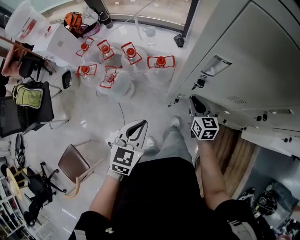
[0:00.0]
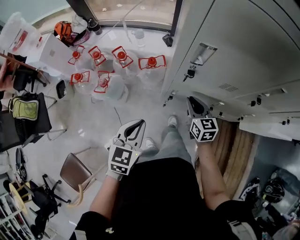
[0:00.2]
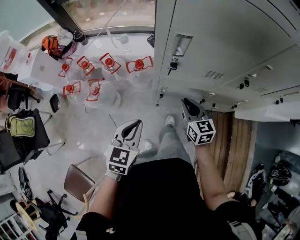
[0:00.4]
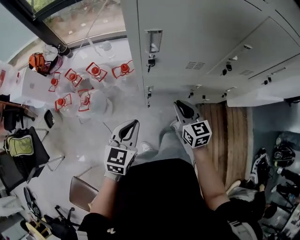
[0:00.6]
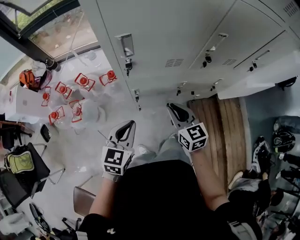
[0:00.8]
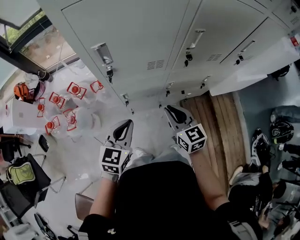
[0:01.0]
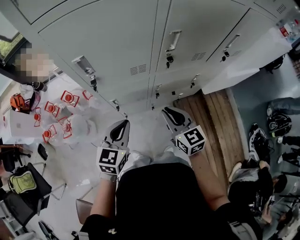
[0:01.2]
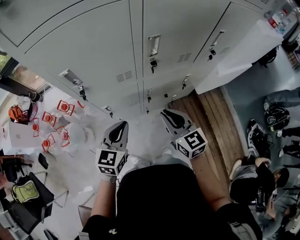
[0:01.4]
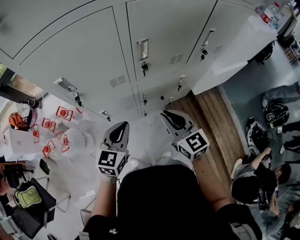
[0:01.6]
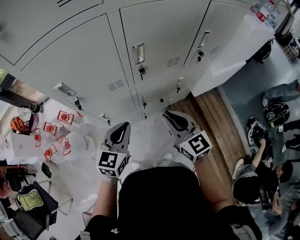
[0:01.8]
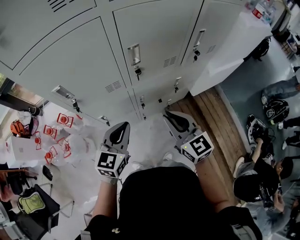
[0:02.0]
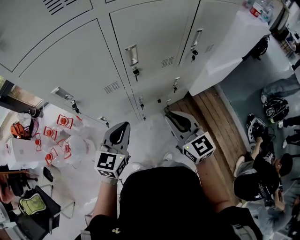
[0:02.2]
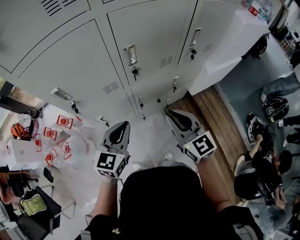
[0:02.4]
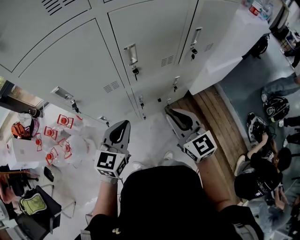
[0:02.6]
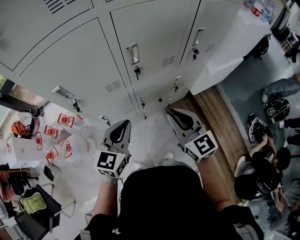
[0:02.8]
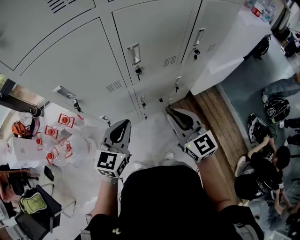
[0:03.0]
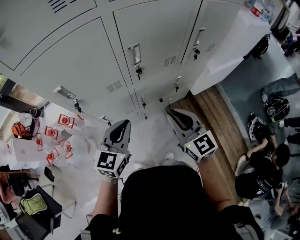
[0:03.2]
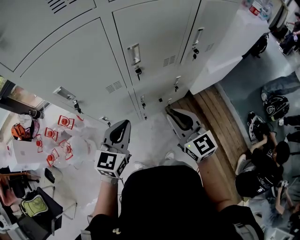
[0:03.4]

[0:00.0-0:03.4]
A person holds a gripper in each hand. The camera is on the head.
0:00.0 to 0:01.6: The left gripper ends up some 30 cm from where it was, and swivels roughly 30 degrees. Meanwhile the right gripper shifts by some 35 cm, and swivels about 20 degrees.
0:01.6 to 0:03.4: The right gripper moves some 5 cm. The left gripper moves some 5 cm.

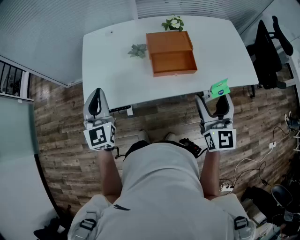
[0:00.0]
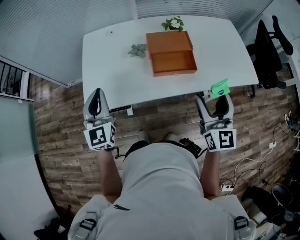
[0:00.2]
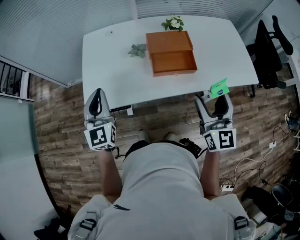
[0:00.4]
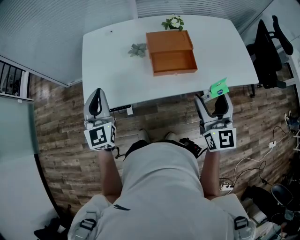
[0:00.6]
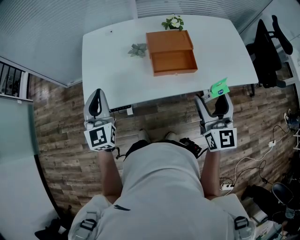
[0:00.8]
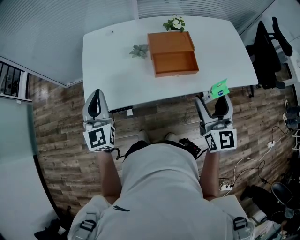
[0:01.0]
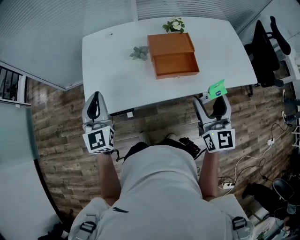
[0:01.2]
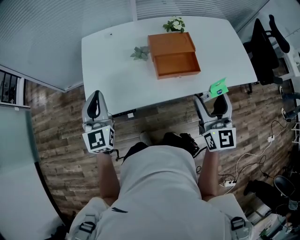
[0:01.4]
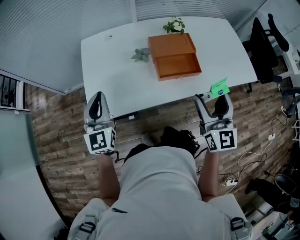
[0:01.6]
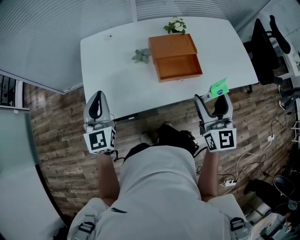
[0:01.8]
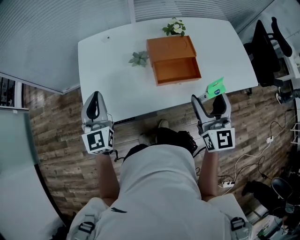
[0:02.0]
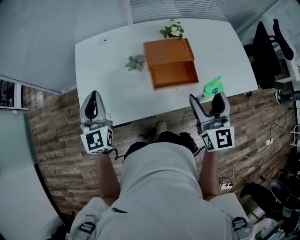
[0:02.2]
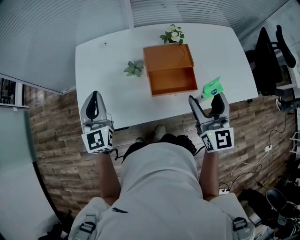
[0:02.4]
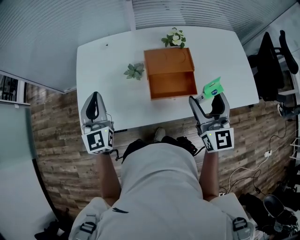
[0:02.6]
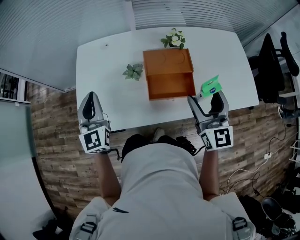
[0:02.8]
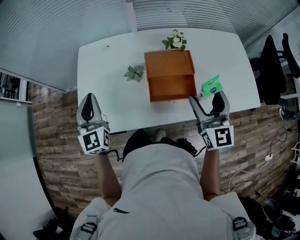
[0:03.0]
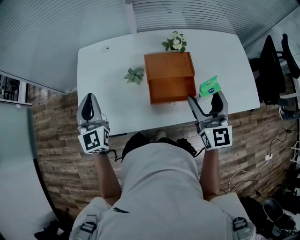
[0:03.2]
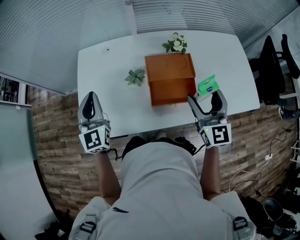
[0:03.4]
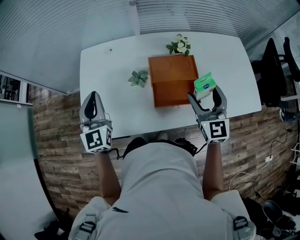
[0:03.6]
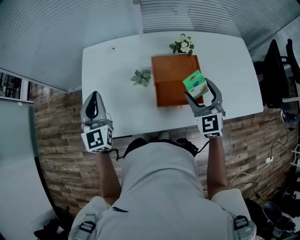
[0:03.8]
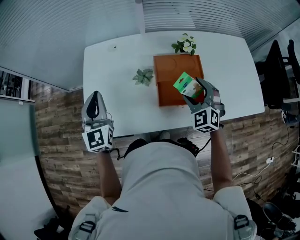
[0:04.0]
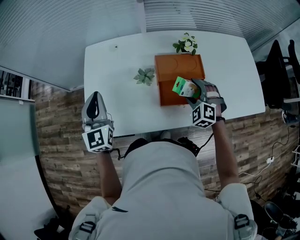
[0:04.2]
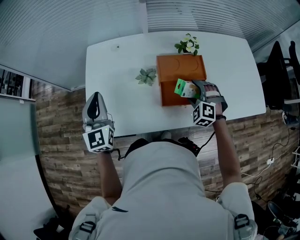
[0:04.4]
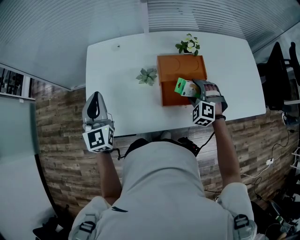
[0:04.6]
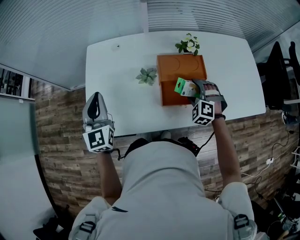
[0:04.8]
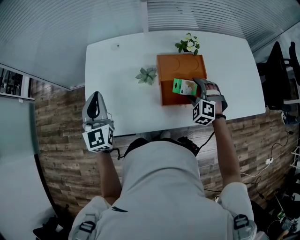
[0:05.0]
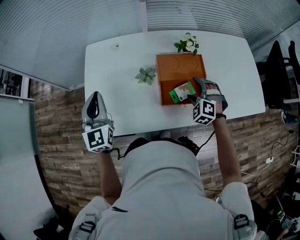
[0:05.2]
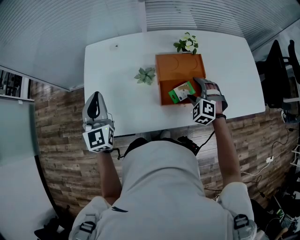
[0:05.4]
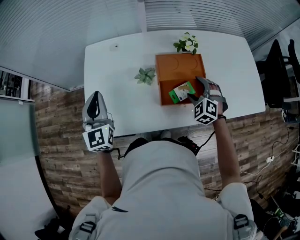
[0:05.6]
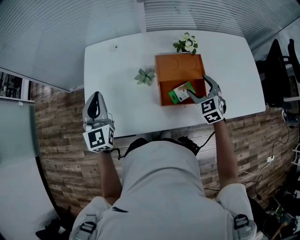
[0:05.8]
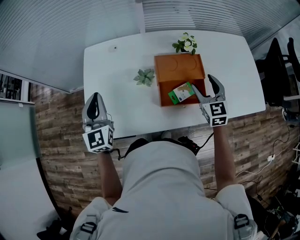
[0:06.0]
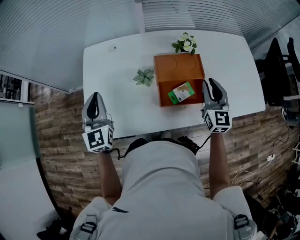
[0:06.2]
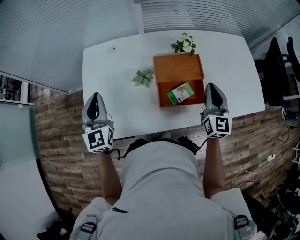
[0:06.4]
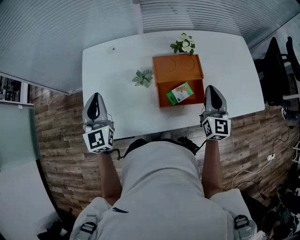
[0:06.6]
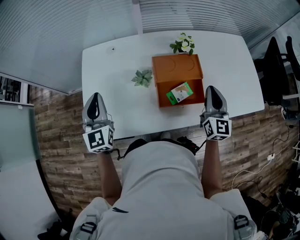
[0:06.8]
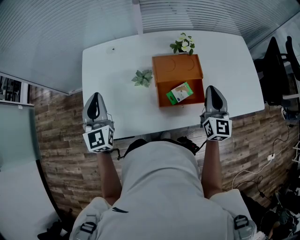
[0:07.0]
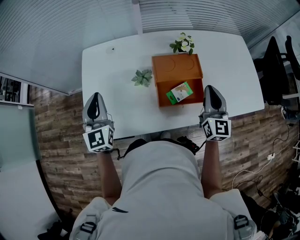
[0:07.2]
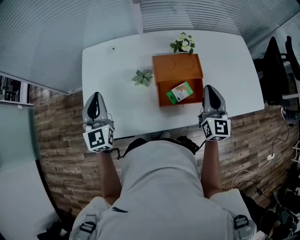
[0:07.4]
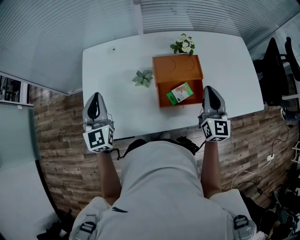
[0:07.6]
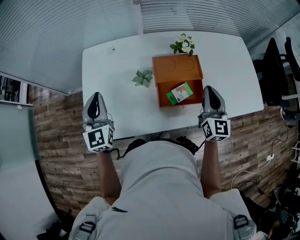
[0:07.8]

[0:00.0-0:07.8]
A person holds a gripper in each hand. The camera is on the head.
0:00.0 to 0:01.6: The left gripper moves approximately 5 cm, while the right gripper changes place by about 5 cm.
0:01.6 to 0:03.2: The right gripper is displaced forward and to the right by some 15 cm. The left gripper shifts roughly 10 cm forward.
0:03.2 to 0:04.6: The right gripper goes roughly 20 cm downward, and points its fingers roughly 40 degrees further downward.
0:04.6 to 0:06.2: The right gripper goes roughly 15 cm upward and to the right, rolls clockwise, seen from behind, by roughly 60 degrees, and closes its fingers.
0:06.2 to 0:07.8: The grippers move only a little.

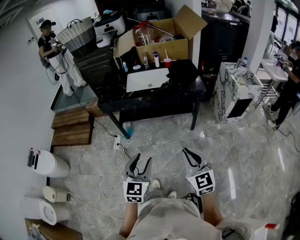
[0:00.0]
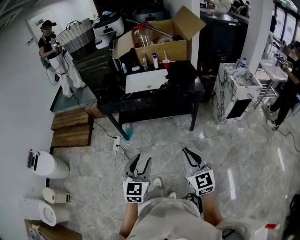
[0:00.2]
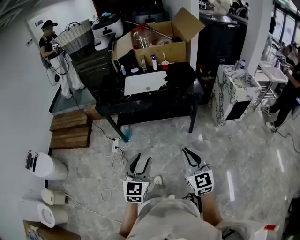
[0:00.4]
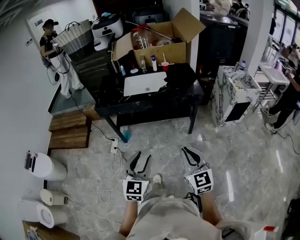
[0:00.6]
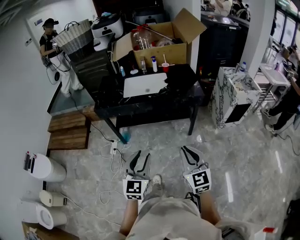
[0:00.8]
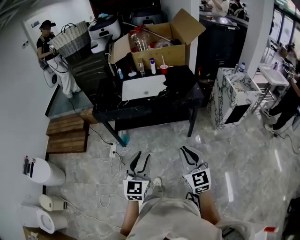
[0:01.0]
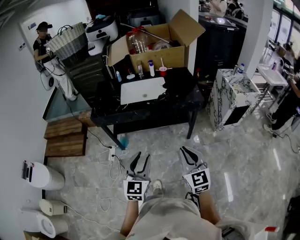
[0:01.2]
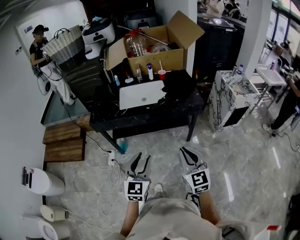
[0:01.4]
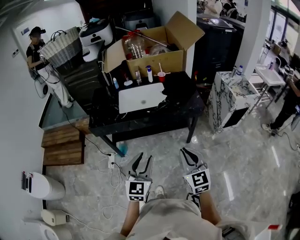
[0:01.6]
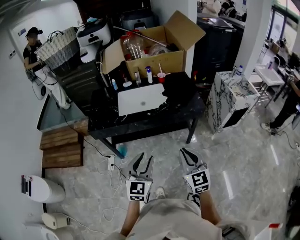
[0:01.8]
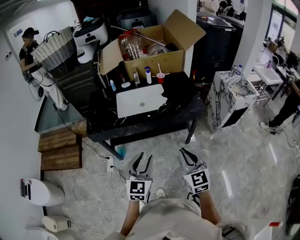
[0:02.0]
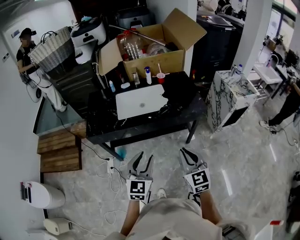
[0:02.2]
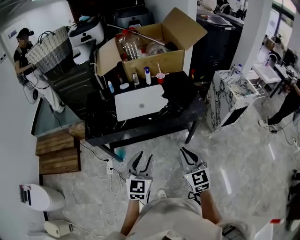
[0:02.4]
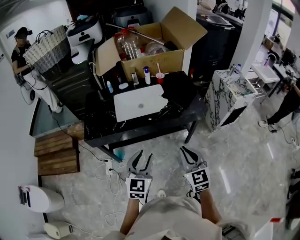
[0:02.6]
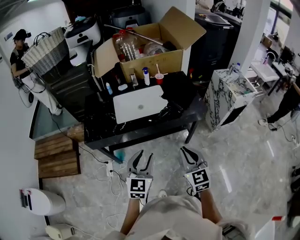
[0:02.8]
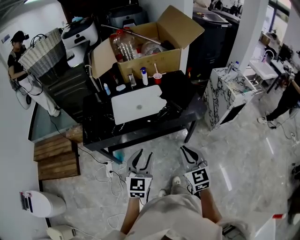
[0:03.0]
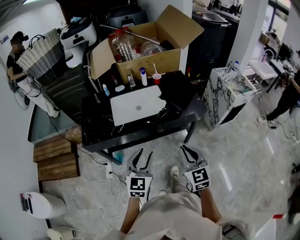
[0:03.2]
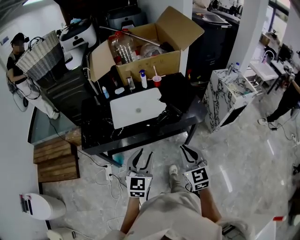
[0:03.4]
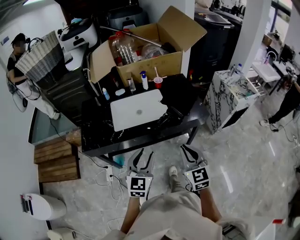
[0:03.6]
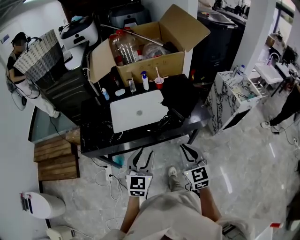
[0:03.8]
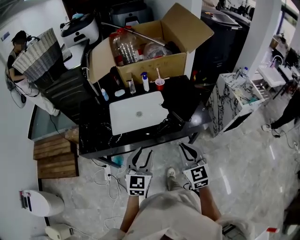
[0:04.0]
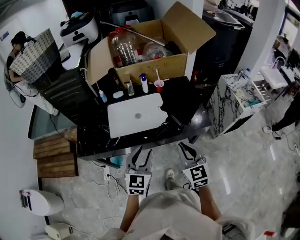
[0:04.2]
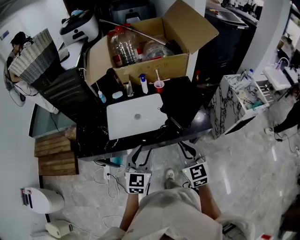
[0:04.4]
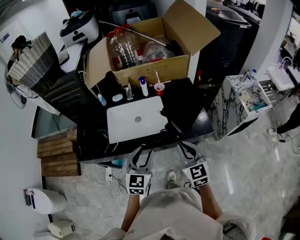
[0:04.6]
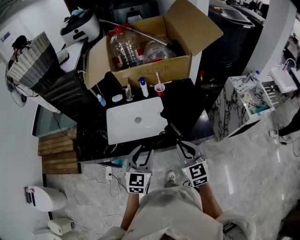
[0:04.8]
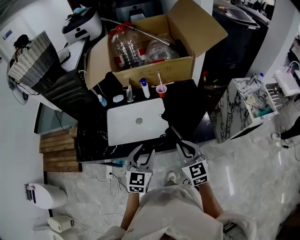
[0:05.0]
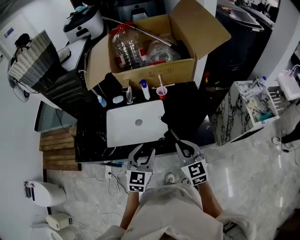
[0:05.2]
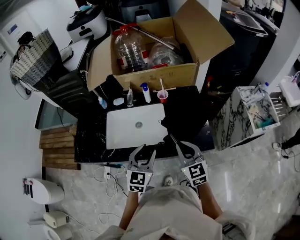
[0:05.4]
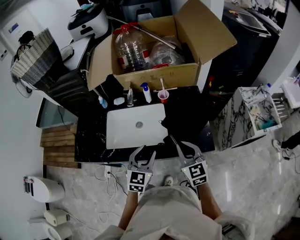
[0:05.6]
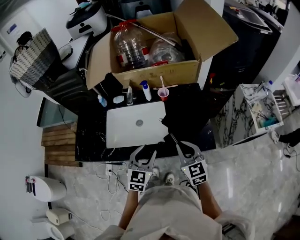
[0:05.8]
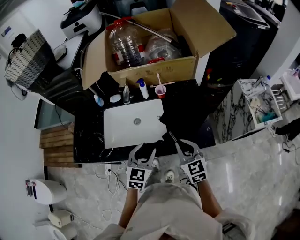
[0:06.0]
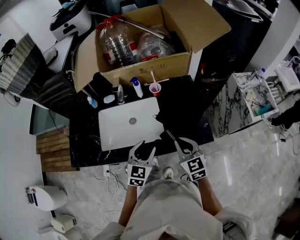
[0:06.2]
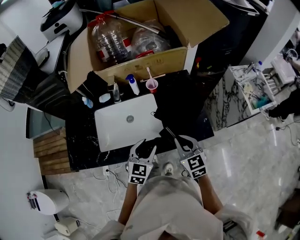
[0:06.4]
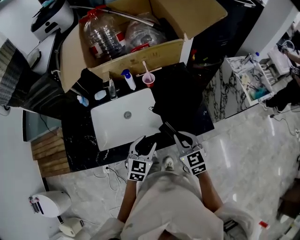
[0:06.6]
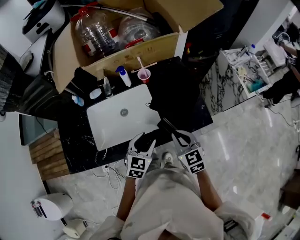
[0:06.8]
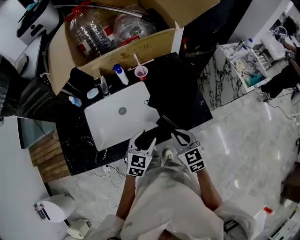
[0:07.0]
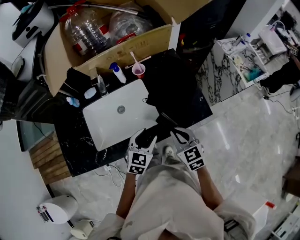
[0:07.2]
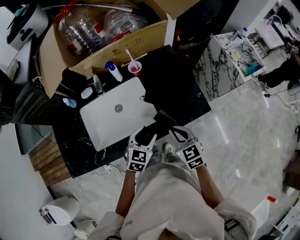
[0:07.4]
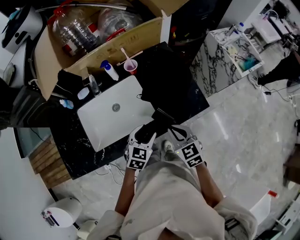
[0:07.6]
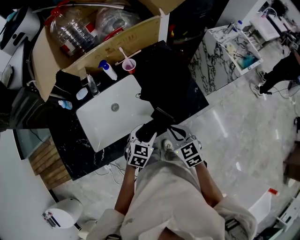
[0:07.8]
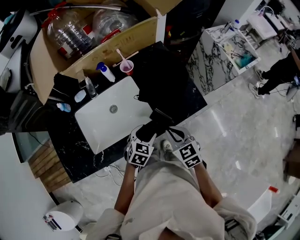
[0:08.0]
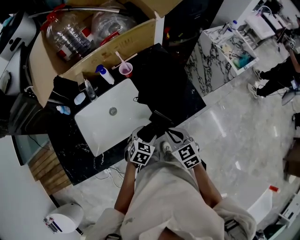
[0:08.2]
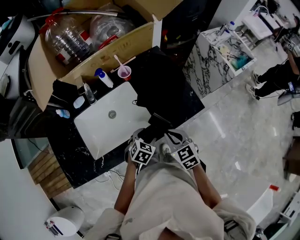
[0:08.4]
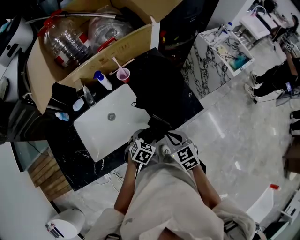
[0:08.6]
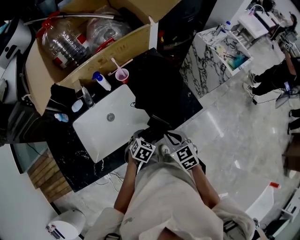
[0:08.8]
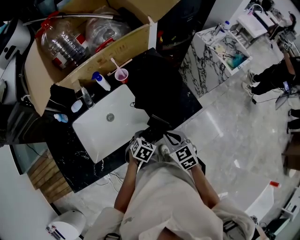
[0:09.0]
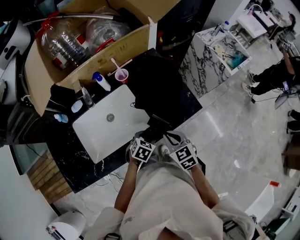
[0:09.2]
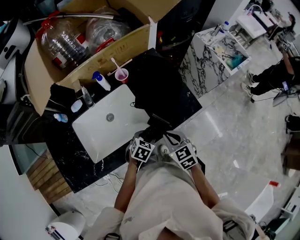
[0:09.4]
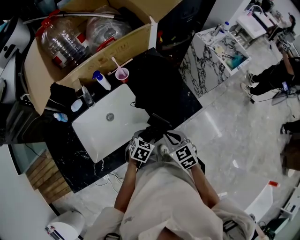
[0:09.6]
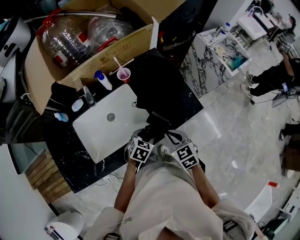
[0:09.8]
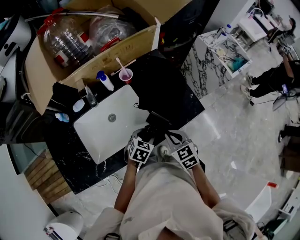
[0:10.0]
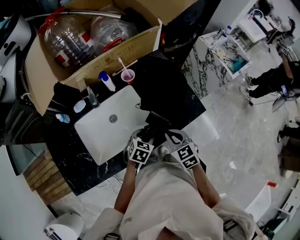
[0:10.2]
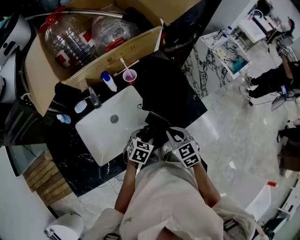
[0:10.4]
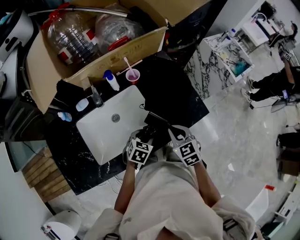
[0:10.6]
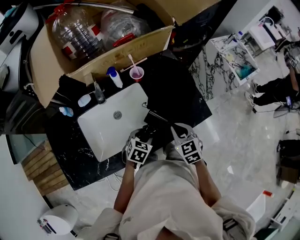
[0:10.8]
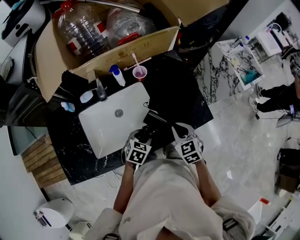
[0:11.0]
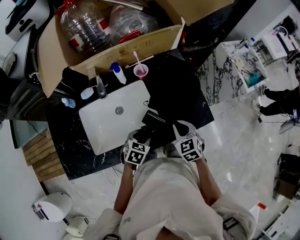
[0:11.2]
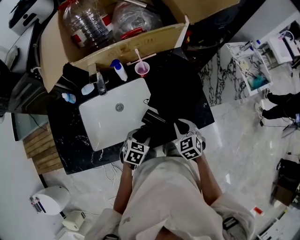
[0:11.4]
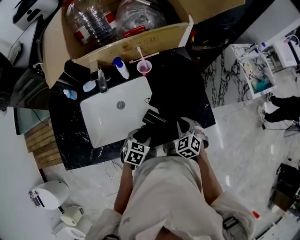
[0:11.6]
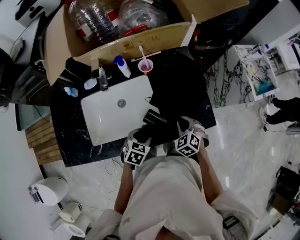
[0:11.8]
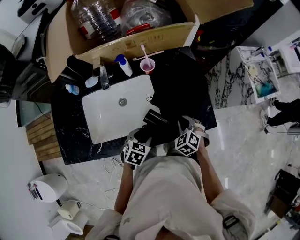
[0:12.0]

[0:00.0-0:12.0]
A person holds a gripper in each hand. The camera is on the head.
0:00.0 to 0:01.6: Both grippers move forward, some 20 cm.
0:01.6 to 0:03.0: The right gripper goes roughly 15 cm forward and to the left, while the left gripper travels forward by approximately 15 cm.
0:03.0 to 0:04.4: Both grippers move forward, roughly 20 cm.
0:04.4 to 0:06.0: The left gripper moves forward, to the right and downward, about 15 cm; the right gripper goes about 15 cm forward and to the right.
0:06.0 to 0:07.6: Both grippers travel together downward, approximately 10 cm. The left gripper swivels about 30 degrees.
0:07.6 to 0:09.0: The left gripper moves downward, about 10 cm, and rotates about 20 degrees.
0:09.0 to 0:10.4: The left gripper is displaced to the left by approximately 5 cm.
0:10.4 to 0:12.0: The right gripper is displaced downward, forward and to the right by some 15 cm, and rotates approximately 40 degrees.
